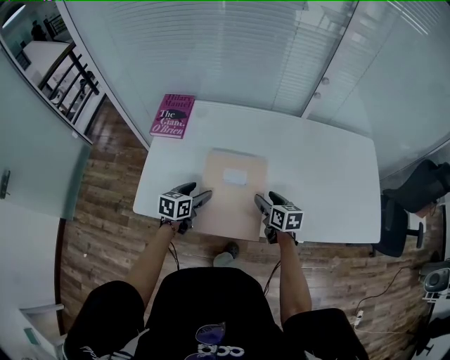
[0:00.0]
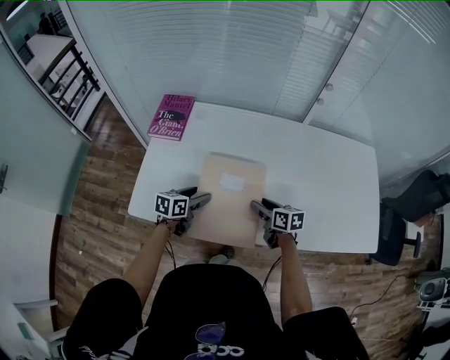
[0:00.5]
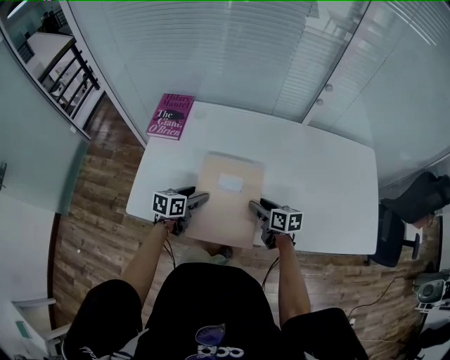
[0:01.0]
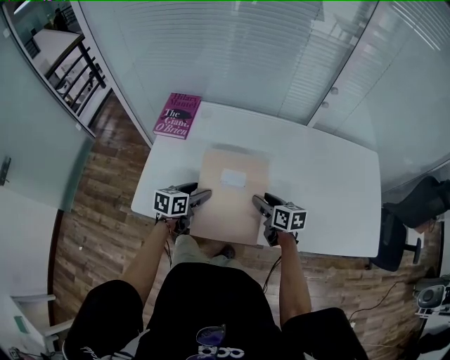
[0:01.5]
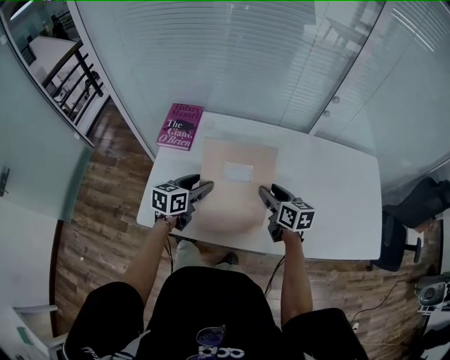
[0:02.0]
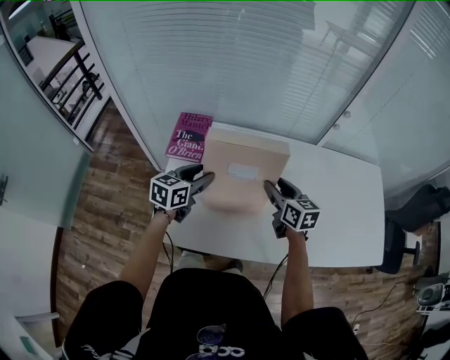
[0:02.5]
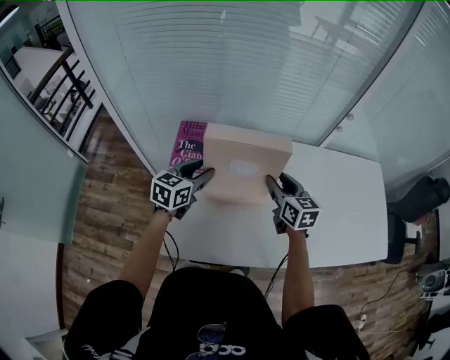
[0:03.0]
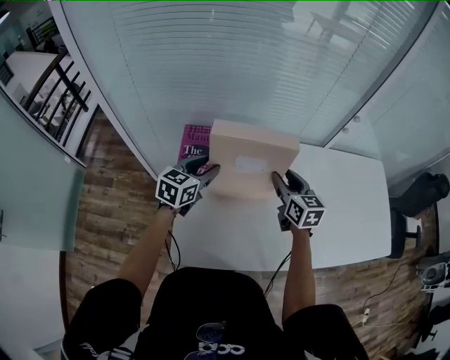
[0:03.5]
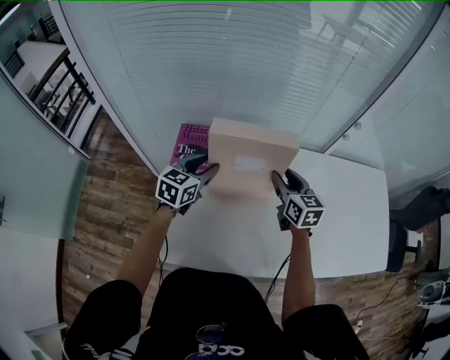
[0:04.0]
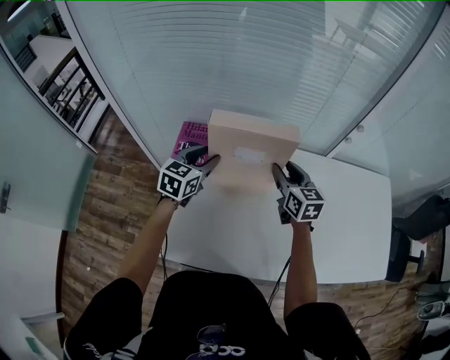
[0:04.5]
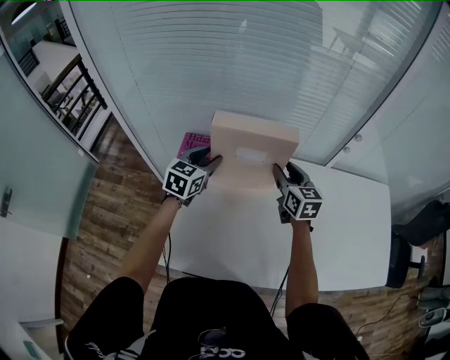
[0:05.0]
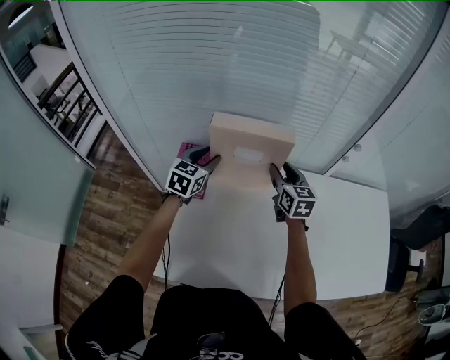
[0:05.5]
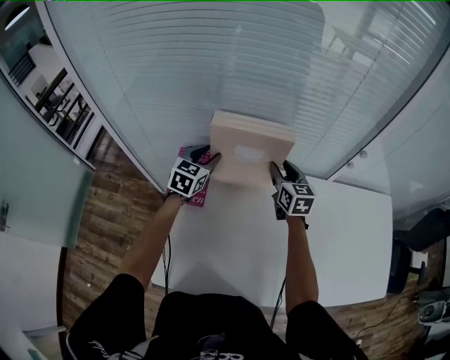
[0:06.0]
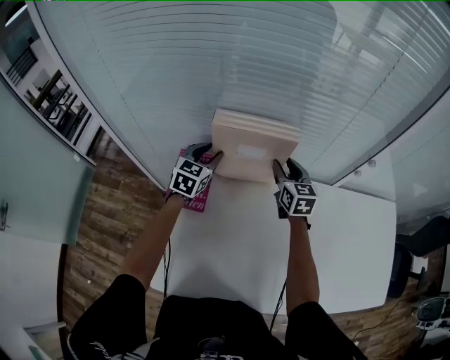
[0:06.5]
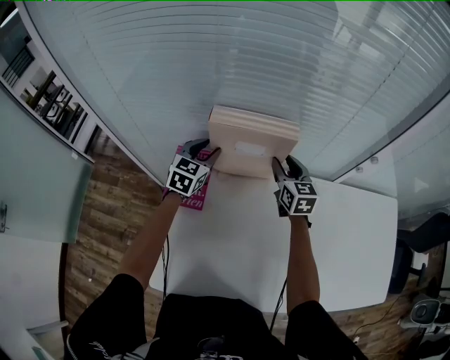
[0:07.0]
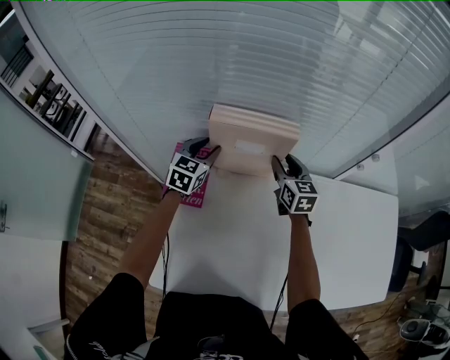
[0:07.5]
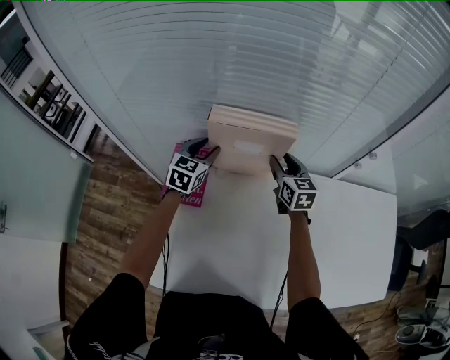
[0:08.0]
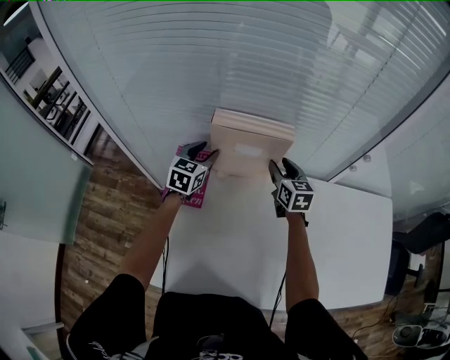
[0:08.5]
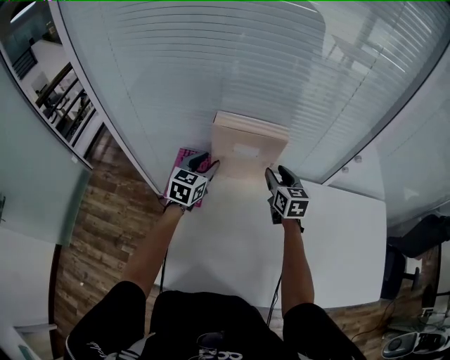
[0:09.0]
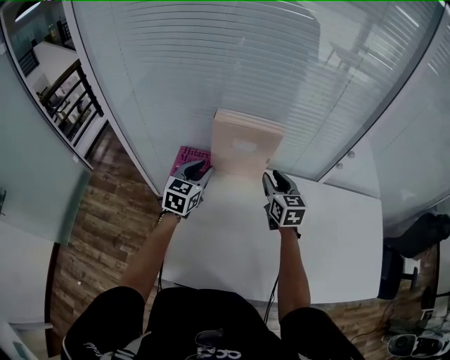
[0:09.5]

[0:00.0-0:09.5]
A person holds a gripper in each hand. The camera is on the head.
0:00.0 to 0:02.0: The grippers both shift upward and forward by approximately 10 cm.
0:02.0 to 0:04.0: Both grippers travel together forward, to the left and upward, approximately 20 cm.
0:04.0 to 0:05.5: Both grippers travel together forward, some 10 cm.
0:05.5 to 0:07.5: Both grippers move forward, about 10 cm.
0:07.5 to 0:09.5: The left gripper heads backward, covering approximately 15 cm, while the right gripper is displaced backward and upward by some 15 cm.

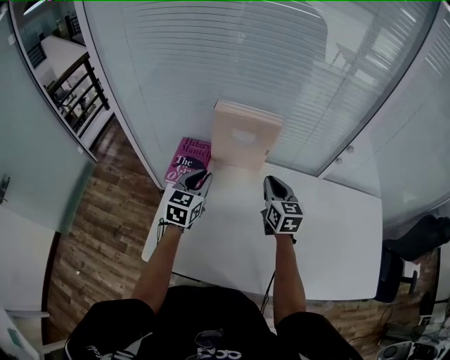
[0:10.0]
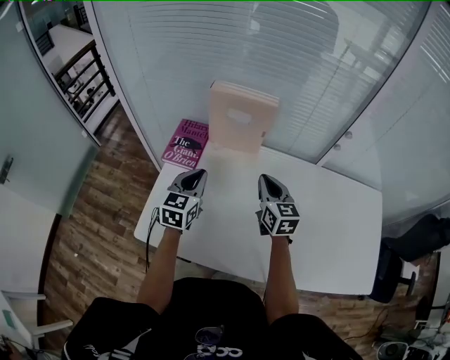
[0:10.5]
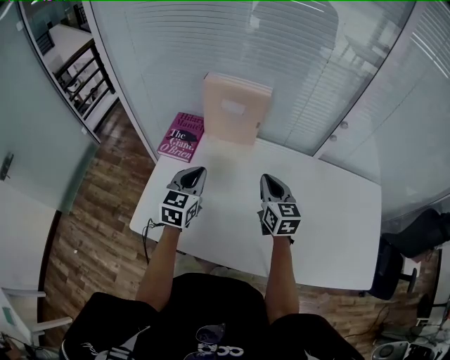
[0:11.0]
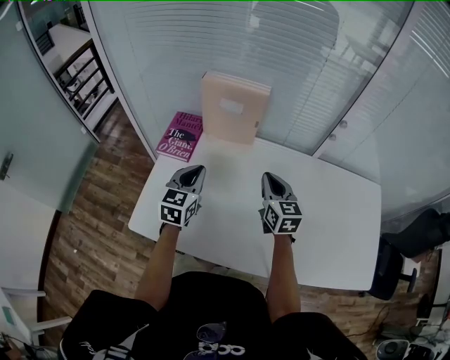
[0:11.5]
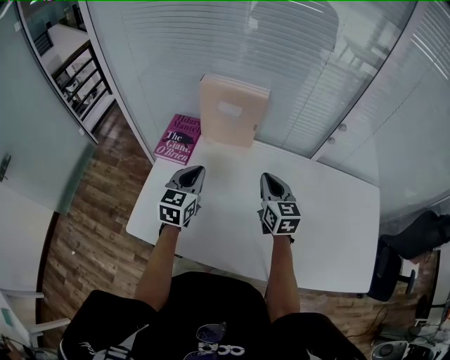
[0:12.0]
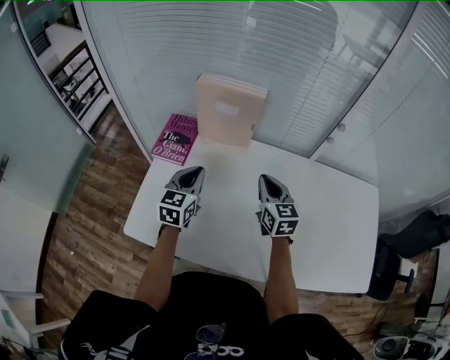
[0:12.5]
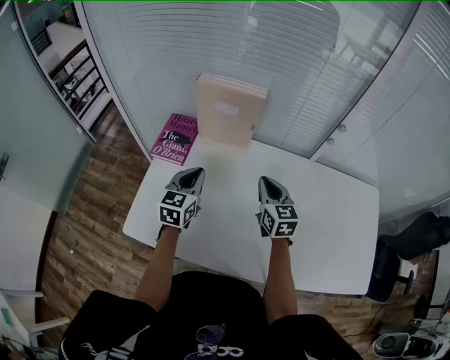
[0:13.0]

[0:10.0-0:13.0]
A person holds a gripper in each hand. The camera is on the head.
0:10.0 to 0:11.5: Both grippers travel together backward, approximately 10 cm.
0:11.5 to 0:13.0: The grippers move only a little.

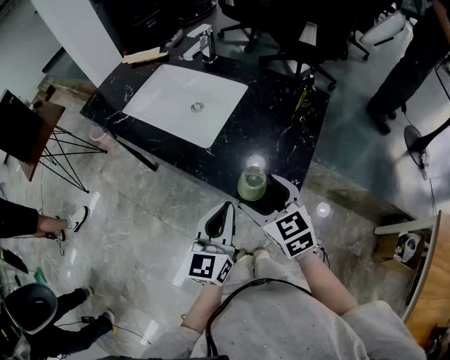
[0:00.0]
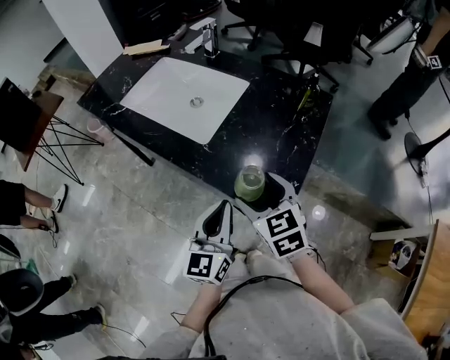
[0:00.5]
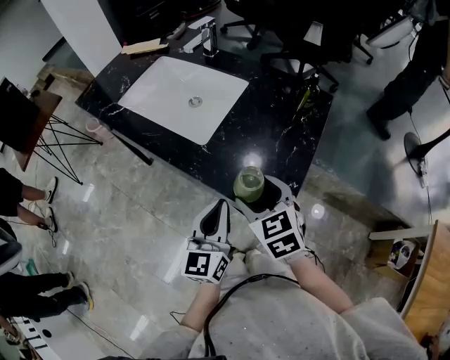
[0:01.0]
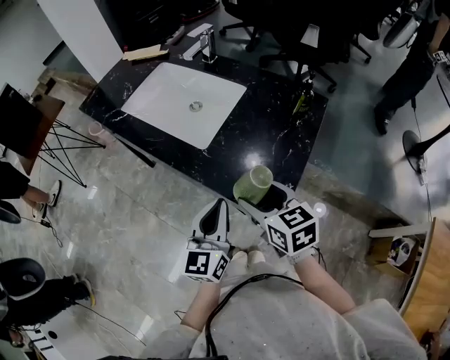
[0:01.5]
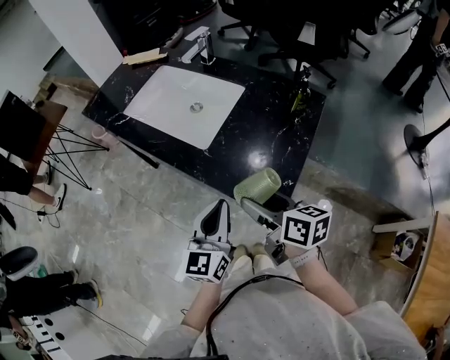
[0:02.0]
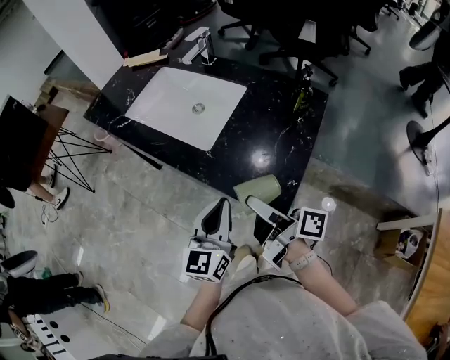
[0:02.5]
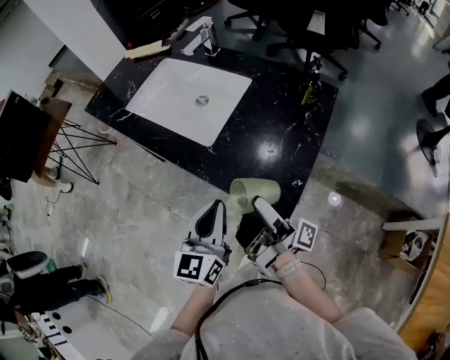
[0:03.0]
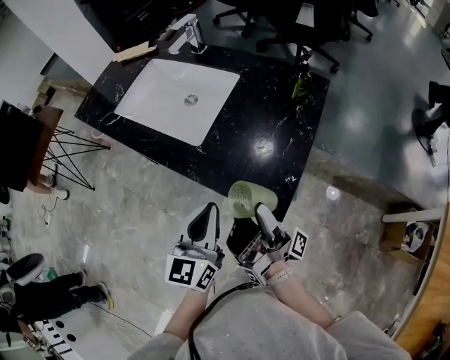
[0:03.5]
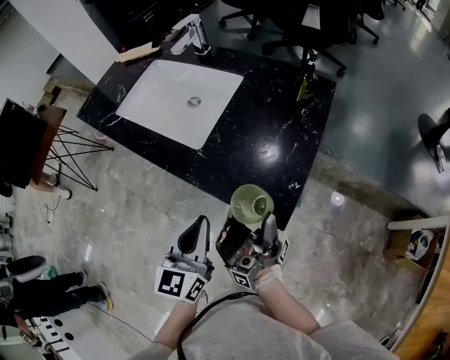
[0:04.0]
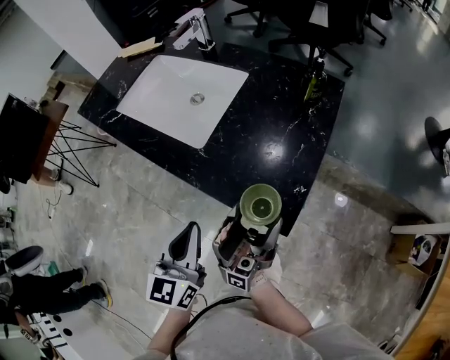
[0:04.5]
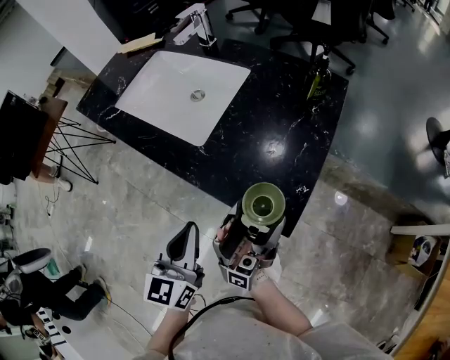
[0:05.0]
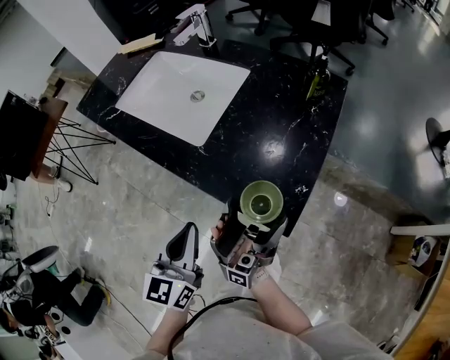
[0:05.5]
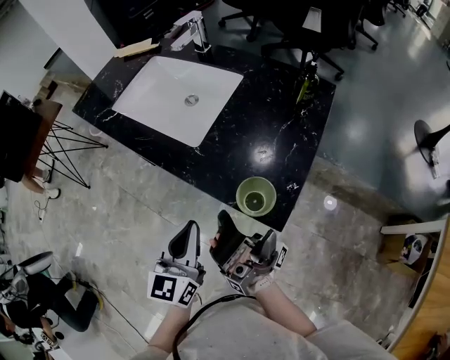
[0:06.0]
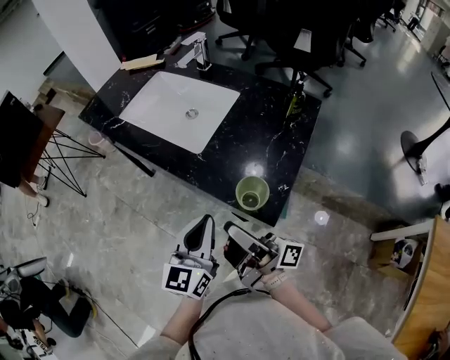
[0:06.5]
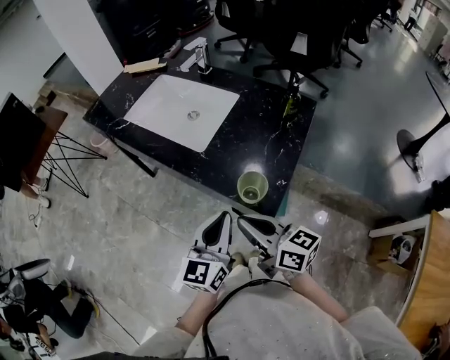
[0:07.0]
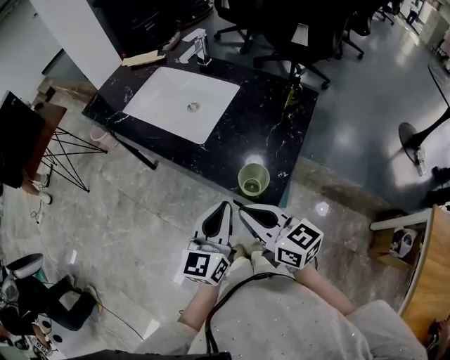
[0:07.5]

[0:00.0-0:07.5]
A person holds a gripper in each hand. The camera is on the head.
0:05.5 to 0:07.5: The left gripper changes place by some 10 cm.

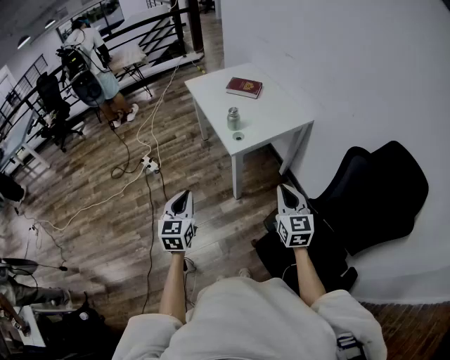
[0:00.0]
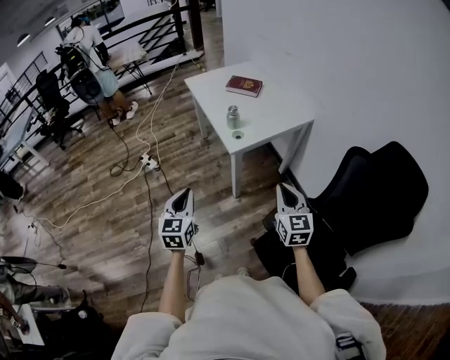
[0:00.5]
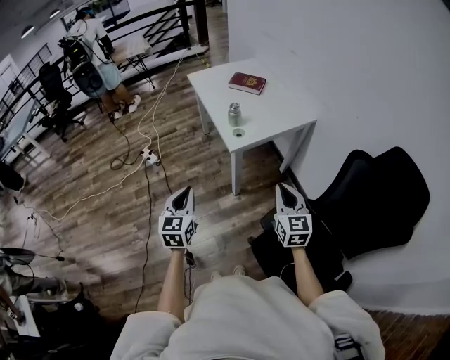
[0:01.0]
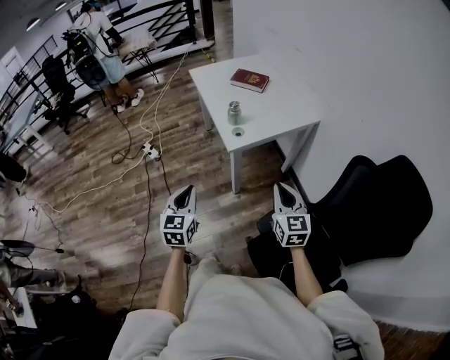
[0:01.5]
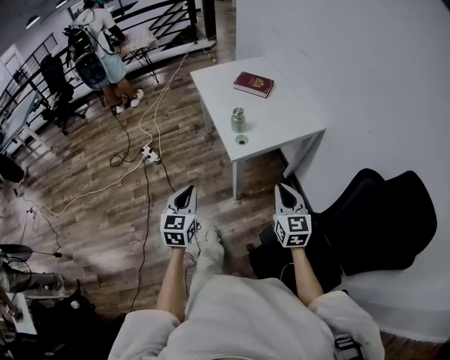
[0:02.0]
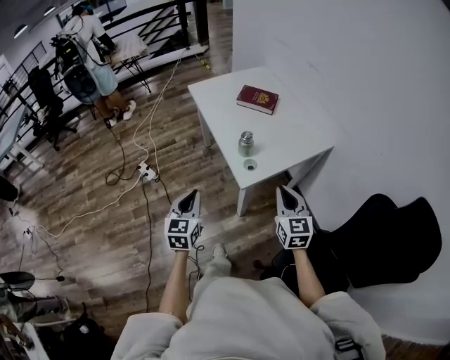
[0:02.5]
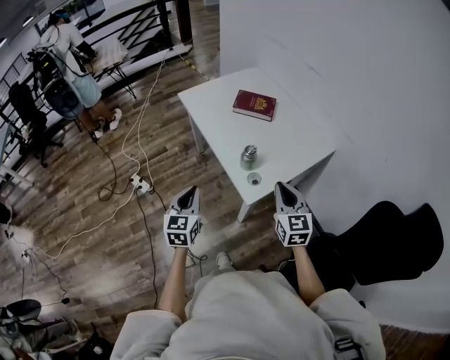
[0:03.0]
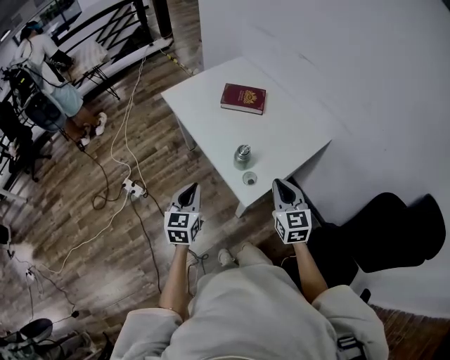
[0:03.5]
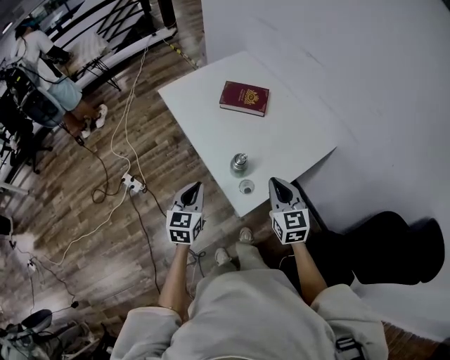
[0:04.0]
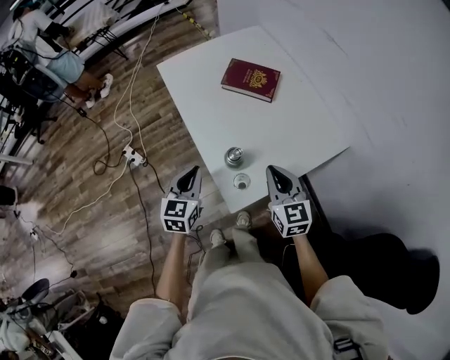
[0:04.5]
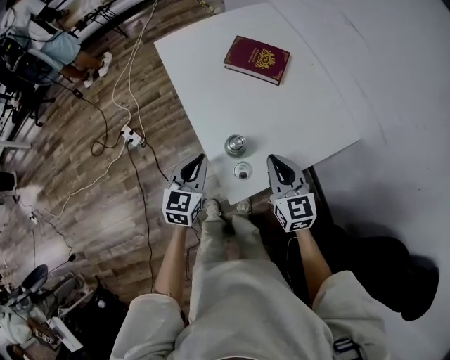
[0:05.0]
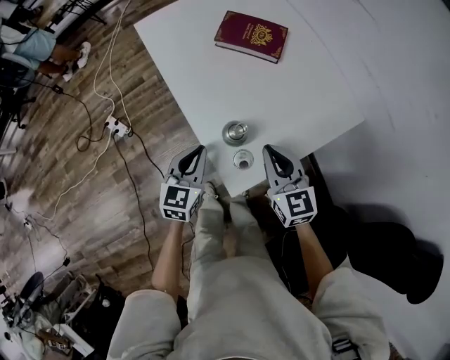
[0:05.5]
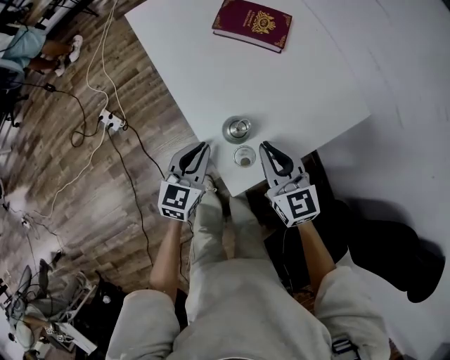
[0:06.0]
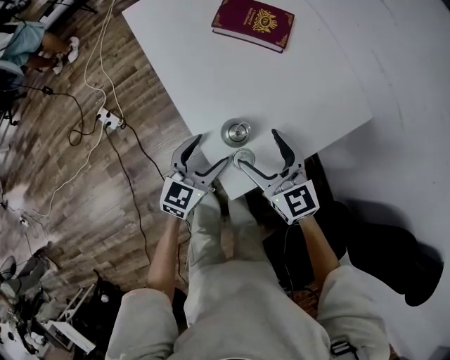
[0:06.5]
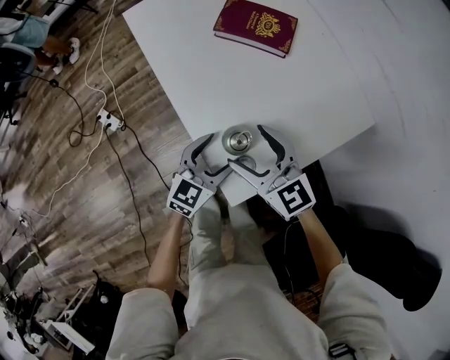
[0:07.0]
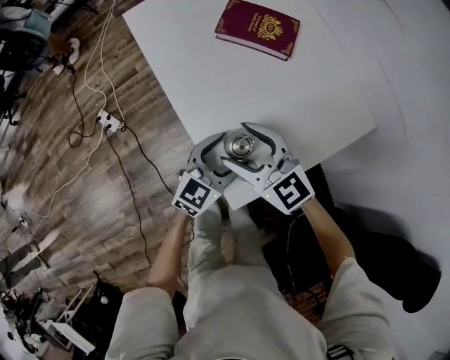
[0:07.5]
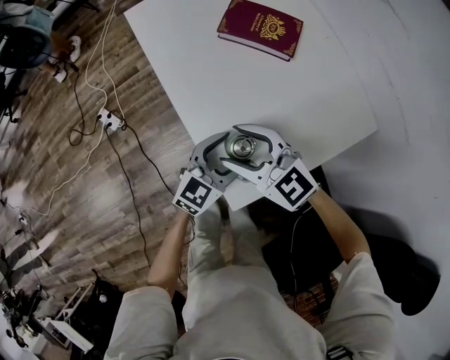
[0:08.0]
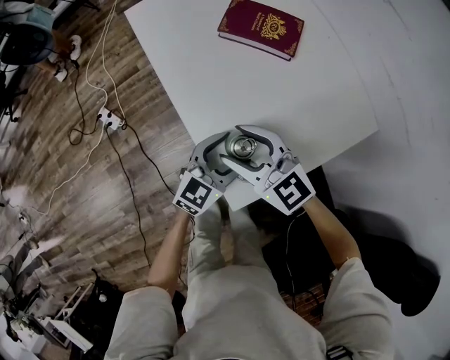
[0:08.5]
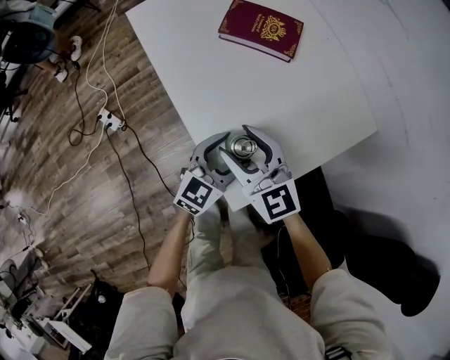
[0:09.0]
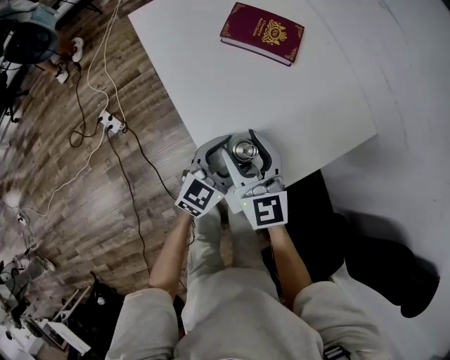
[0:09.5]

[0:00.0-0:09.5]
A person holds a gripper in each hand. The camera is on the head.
0:00.0 to 0:02.0: Both grippers move forward, approximately 10 cm.
0:02.0 to 0:04.0: The two grippers go some 35 cm forward.
0:04.0 to 0:05.5: The right gripper is displaced downward and forward by roughly 15 cm, while the left gripper moves downward, forward and to the right, approximately 15 cm.
0:05.5 to 0:07.5: The left gripper shifts approximately 10 cm to the right, swivels roughly 20 degrees, and opens. Meanwhile the right gripper travels to the left by some 10 cm, turns by about 30 degrees, and opens its fingers.
0:07.5 to 0:09.5: The right gripper swivels approximately 30 degrees.
